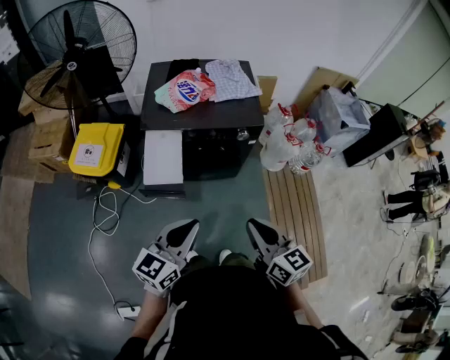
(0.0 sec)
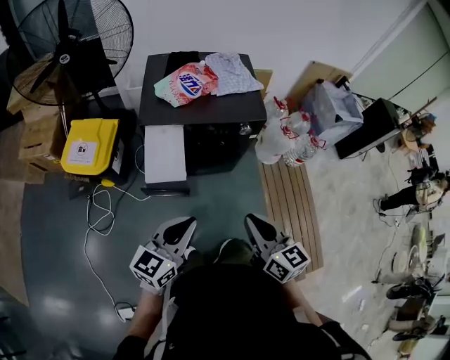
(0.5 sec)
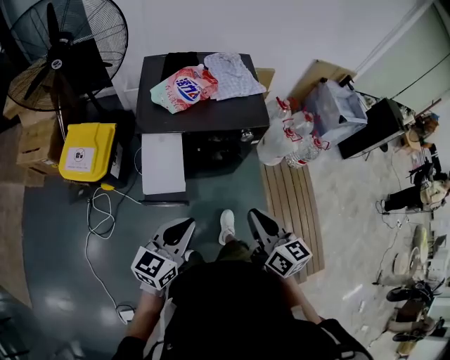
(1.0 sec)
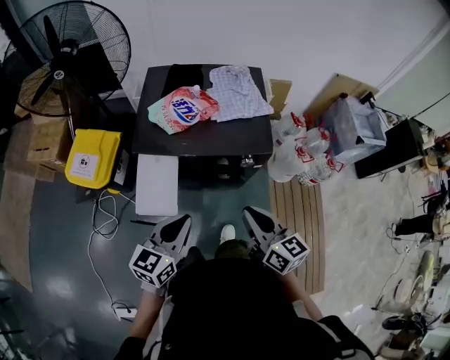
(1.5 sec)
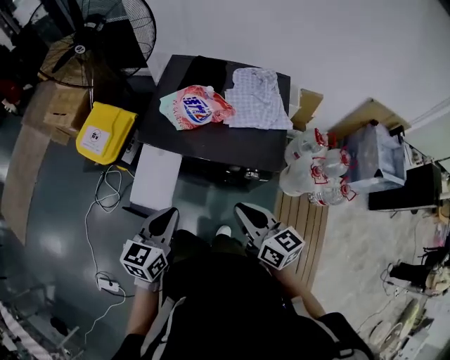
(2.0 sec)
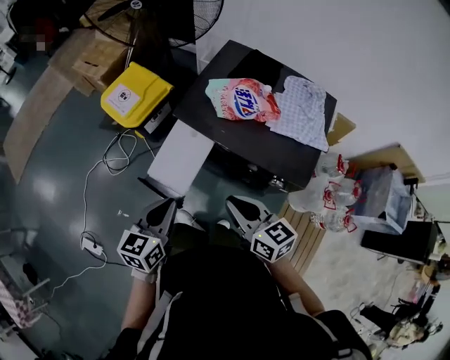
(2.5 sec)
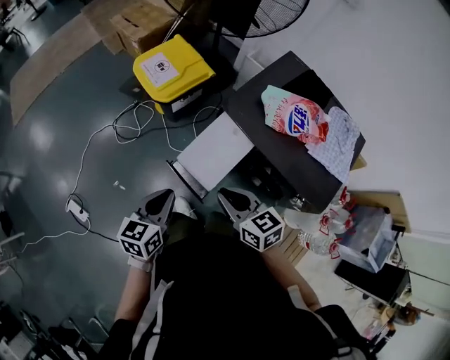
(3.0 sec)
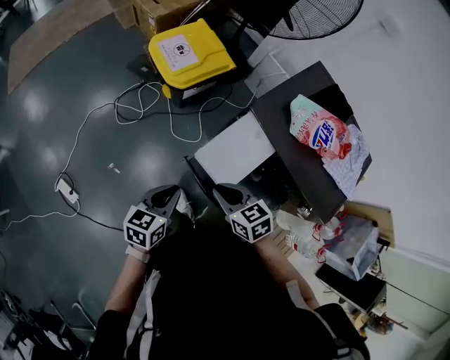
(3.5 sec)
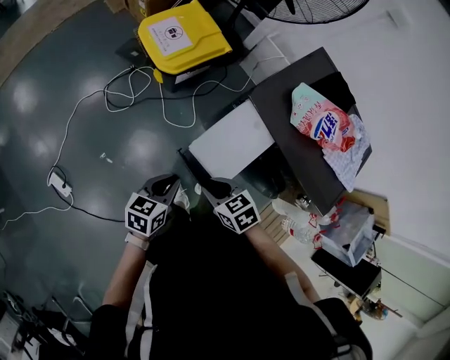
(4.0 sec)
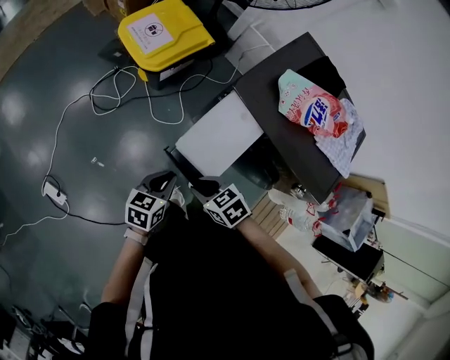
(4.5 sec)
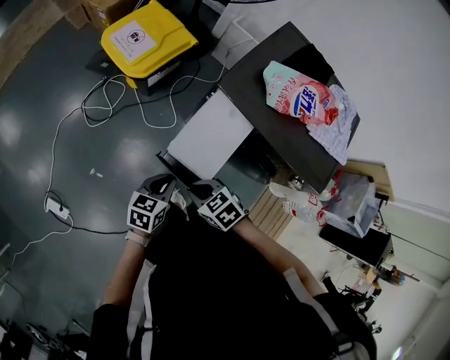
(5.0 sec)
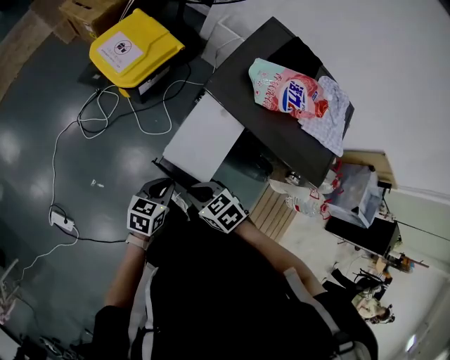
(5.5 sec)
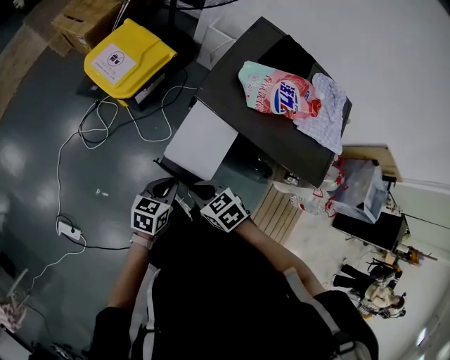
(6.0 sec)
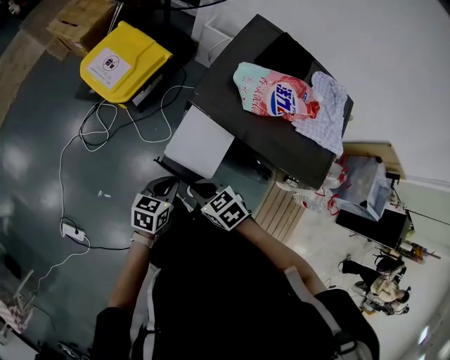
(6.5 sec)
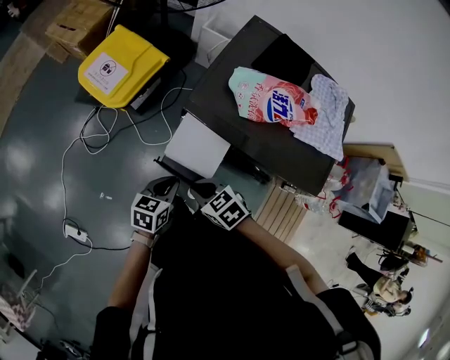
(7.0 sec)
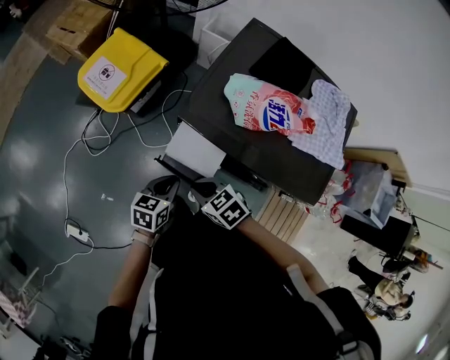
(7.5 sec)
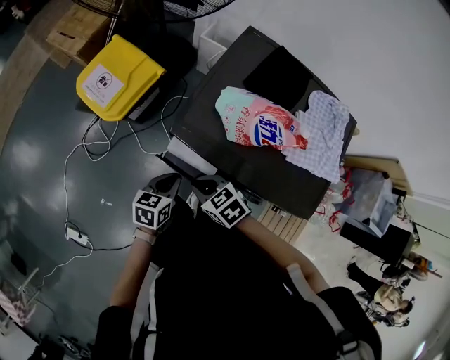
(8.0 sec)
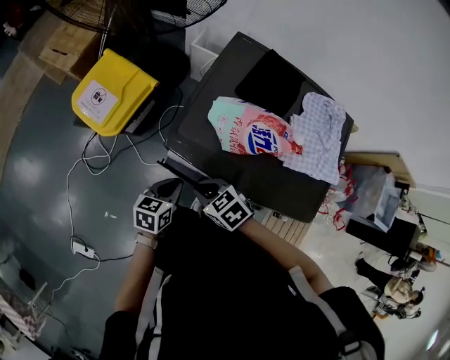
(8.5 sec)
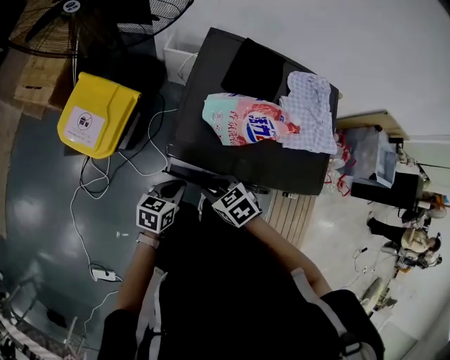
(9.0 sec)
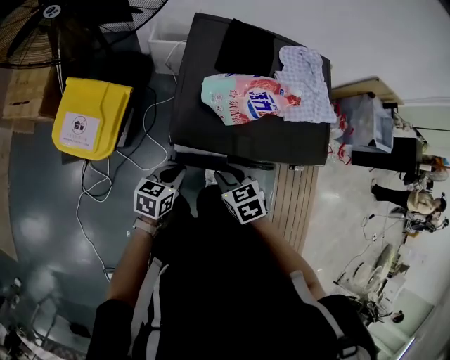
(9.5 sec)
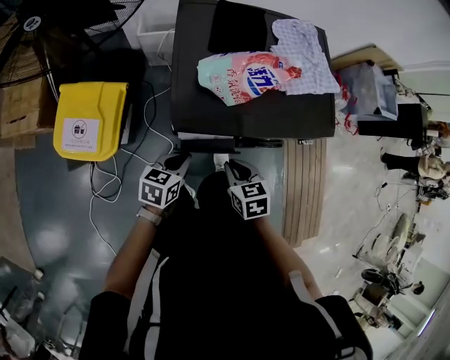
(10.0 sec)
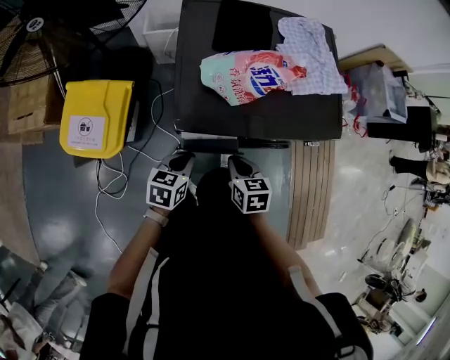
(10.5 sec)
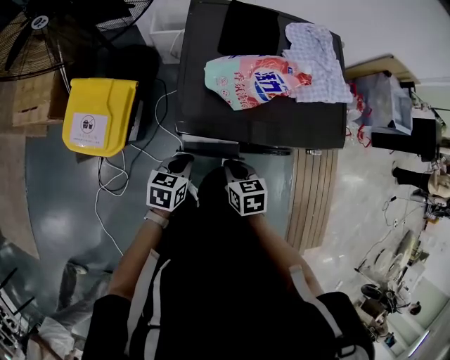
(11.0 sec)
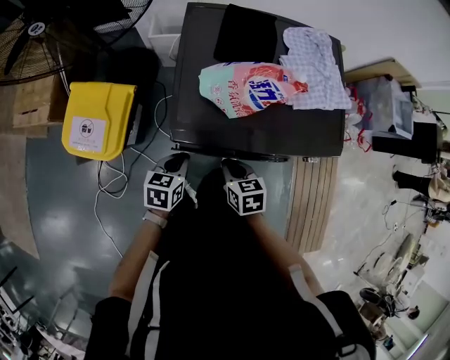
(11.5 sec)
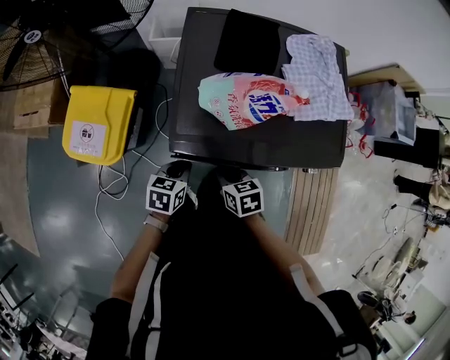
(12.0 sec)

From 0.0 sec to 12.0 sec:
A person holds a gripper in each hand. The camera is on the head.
From 0.0 sec to 2.0 sec: The left gripper ends up approximately 25 cm from where it was, and changes its angle by roughly 30 degrees, while the right gripper moves some 30 cm, and turns by approximately 20 degrees.
From 2.0 sec to 4.0 sec: The left gripper changes place by roughly 35 cm, and turns by approximately 30 degrees; the right gripper changes place by approximately 40 cm, and tips its fingers downward by about 40 degrees.
From 4.0 sec to 6.0 sec: The left gripper travels to the right by approximately 10 cm.
From 6.0 sec to 8.0 sec: Both grippers travel together forward and to the right, approximately 15 cm.
From 8.0 sec to 10.0 sec: The right gripper swivels approximately 60 degrees, and opens, then closes again, while the left gripper moves about 5 cm, and turns by approximately 40 degrees.
From 10.0 sec to 12.0 sec: The left gripper shifts by roughly 5 cm. The right gripper changes place by some 5 cm.

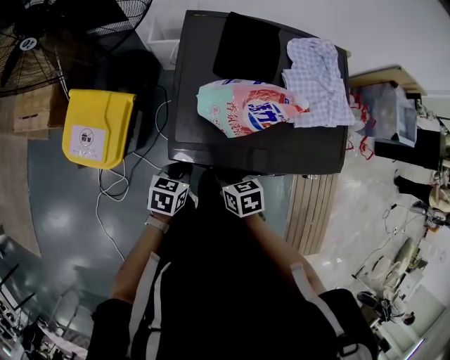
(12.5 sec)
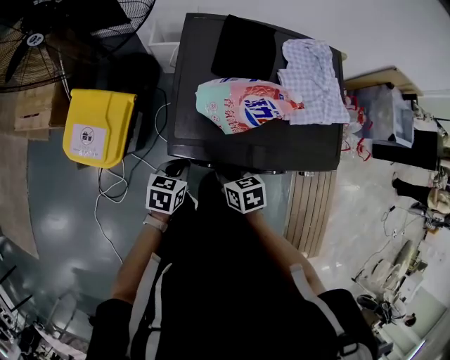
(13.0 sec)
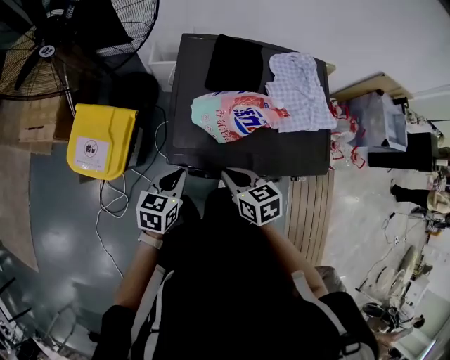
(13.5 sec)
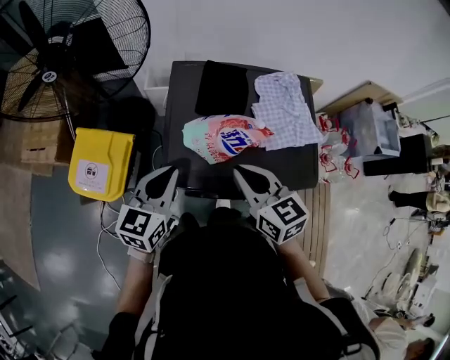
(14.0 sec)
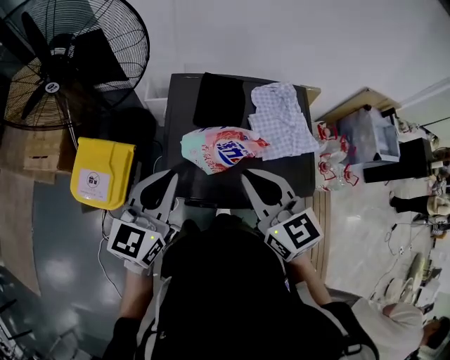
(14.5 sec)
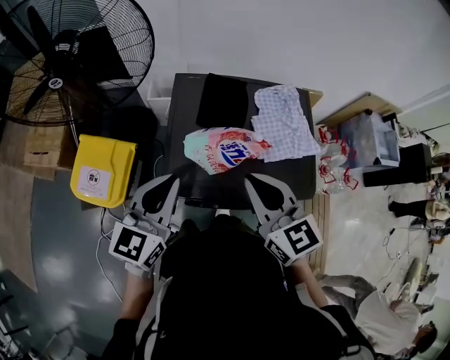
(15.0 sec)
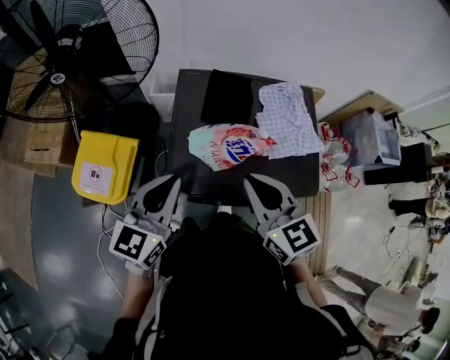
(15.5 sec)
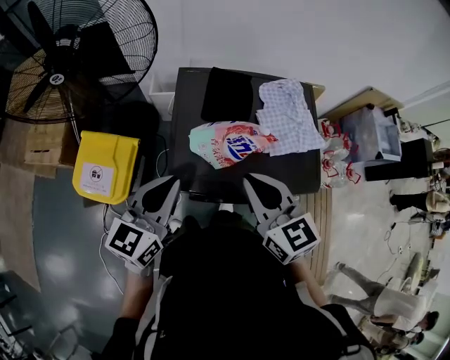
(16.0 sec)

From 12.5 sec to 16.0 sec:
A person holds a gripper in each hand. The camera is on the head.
From 12.5 sec to 14.5 sec: The two grippers go roughly 35 cm upward. The left gripper angles its fingers upward, by about 40 degrees, while the right gripper angles its fingers upward, by some 40 degrees.
From 14.5 sec to 16.0 sec: The grippers move only a little.

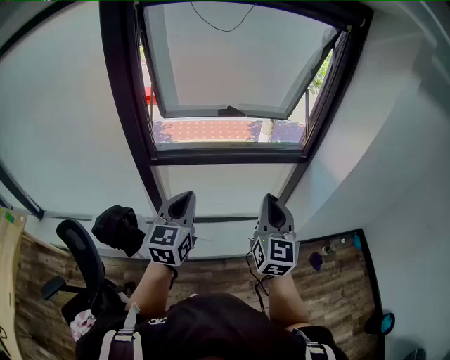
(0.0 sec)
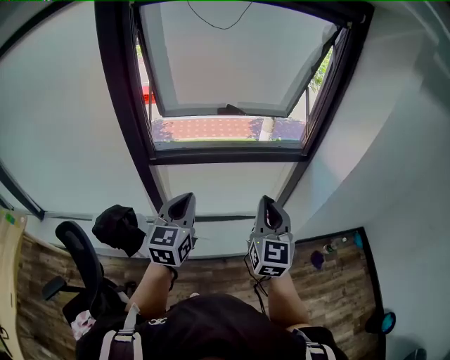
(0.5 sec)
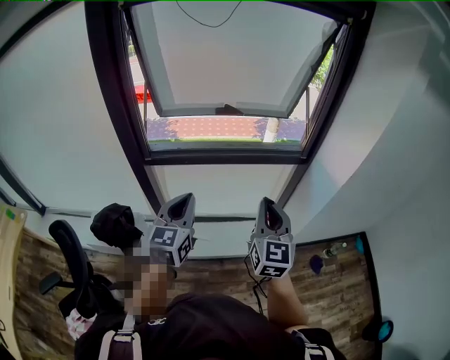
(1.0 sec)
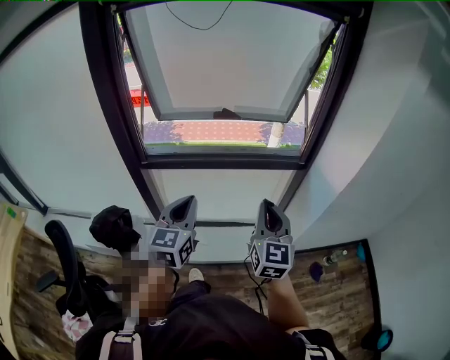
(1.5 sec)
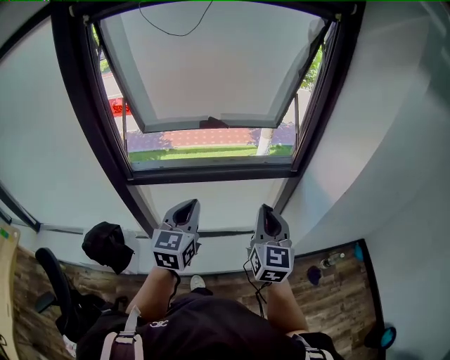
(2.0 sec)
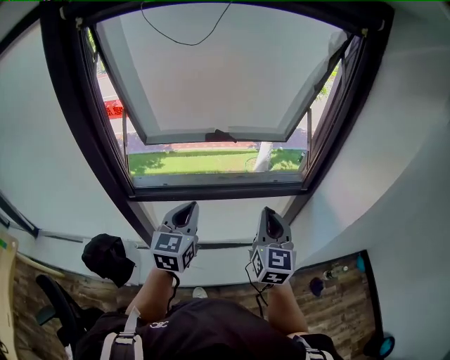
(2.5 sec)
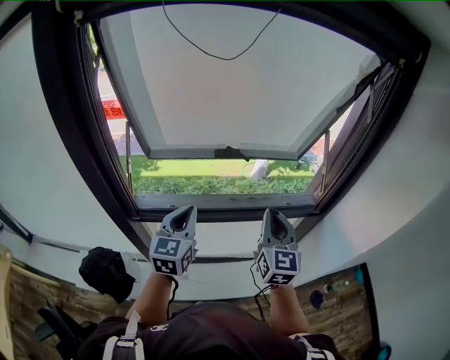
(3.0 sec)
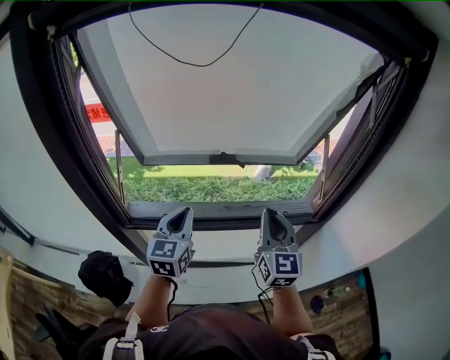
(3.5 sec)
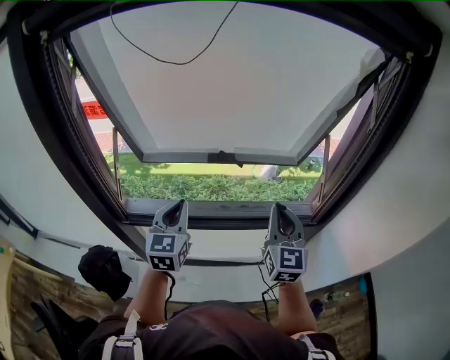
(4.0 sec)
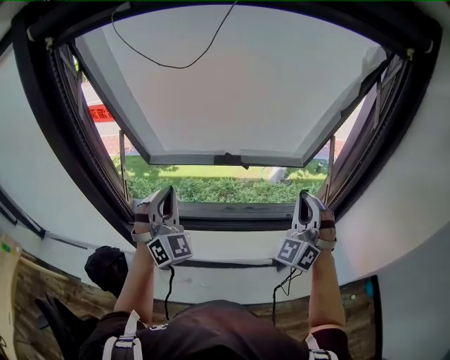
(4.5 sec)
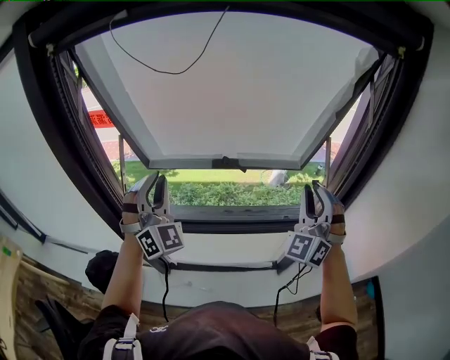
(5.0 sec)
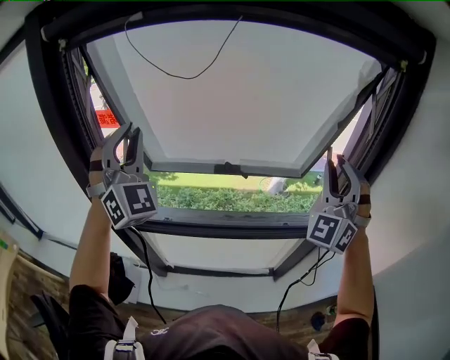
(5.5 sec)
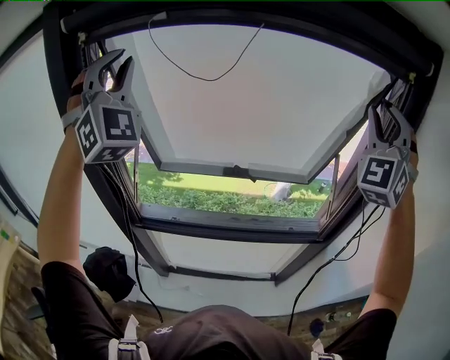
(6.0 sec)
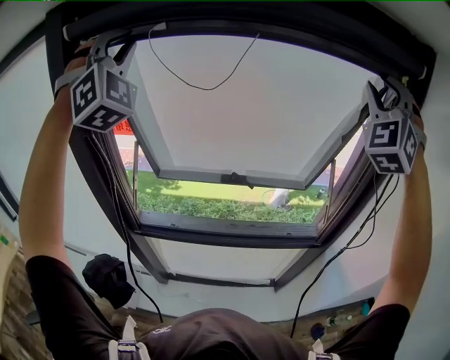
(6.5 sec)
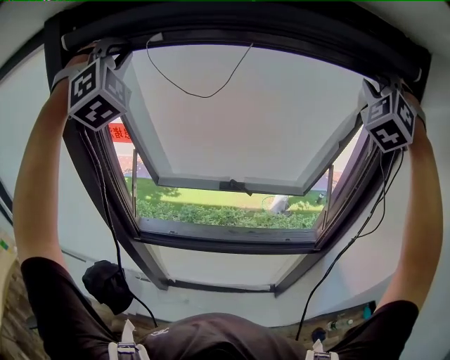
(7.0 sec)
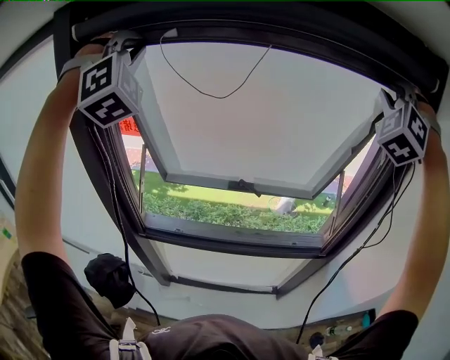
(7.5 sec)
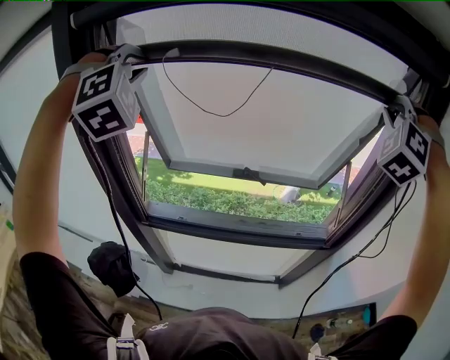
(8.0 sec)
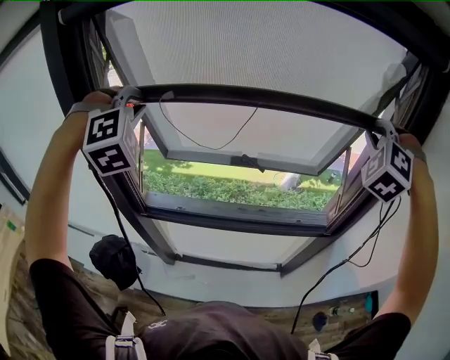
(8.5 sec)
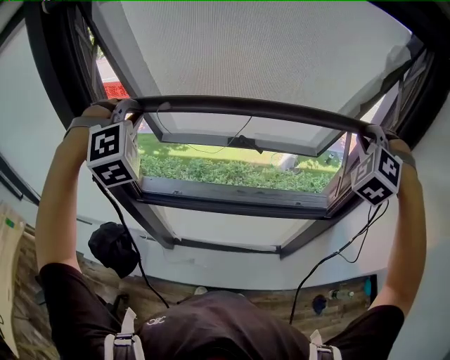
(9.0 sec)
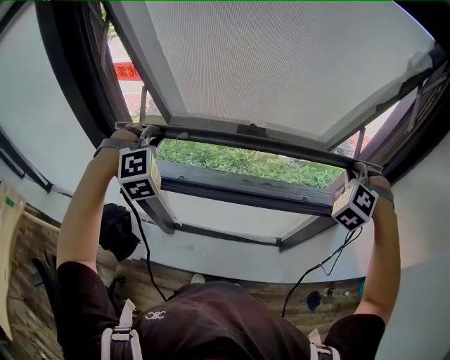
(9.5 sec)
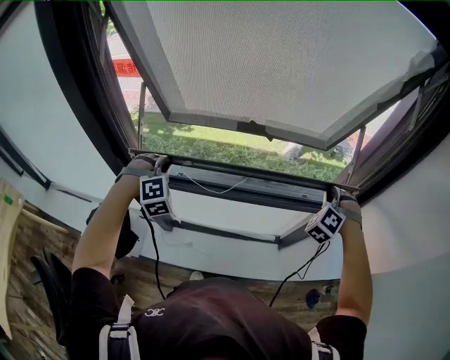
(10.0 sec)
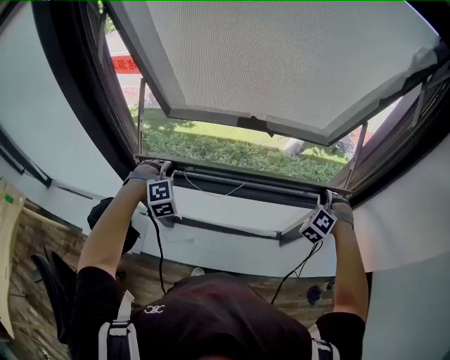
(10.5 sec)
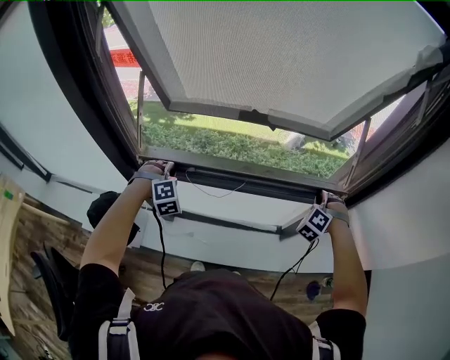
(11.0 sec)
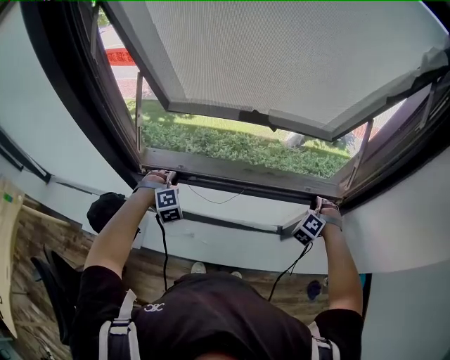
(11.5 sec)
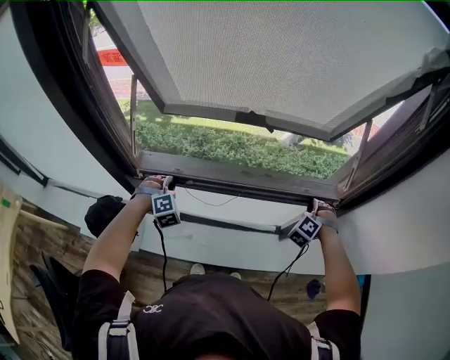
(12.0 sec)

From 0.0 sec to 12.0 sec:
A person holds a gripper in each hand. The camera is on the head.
From 0.0 sec to 2.0 sec: The left gripper shifts roughly 15 cm forward and to the right, while the right gripper moves forward, to the right and downward, some 15 cm.
From 2.0 sec to 4.0 sec: The grippers both shift forward by some 25 cm.
From 4.0 sec to 6.0 sec: Both grippers move upward, about 40 cm. The left gripper rolls clockwise, seen from behind, by roughly 60 degrees. Meanwhile the right gripper rolls counterclockwise, seen from behind, by about 60 degrees, and opens its fingers.
From 6.0 sec to 8.0 sec: The right gripper moves forward, about 5 cm, travels upward and back again, some 10 cm each way, and swivels approximately 40 degrees. Meanwhile the left gripper shifts by some 5 cm, and tilts its fingers roughly 40 degrees downward.
From 8.0 sec to 10.0 sec: The grippers both shift downward by some 50 cm. The left gripper turns by some 30 degrees. Meanwhile the right gripper swivels approximately 30 degrees.
From 10.0 sec to 12.0 sec: The two grippers go roughly 15 cm downward.
